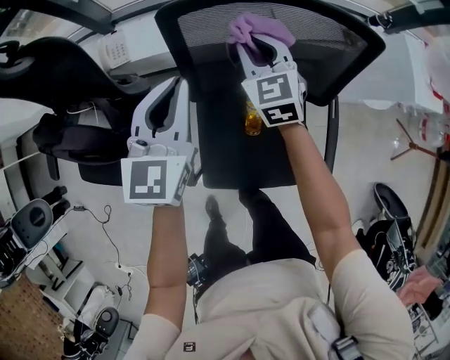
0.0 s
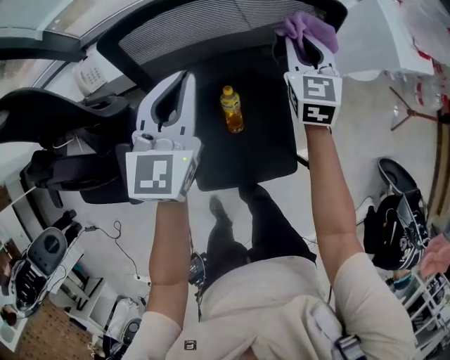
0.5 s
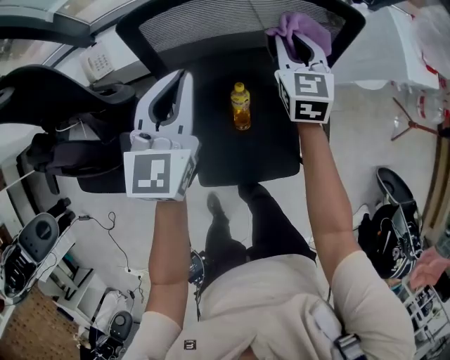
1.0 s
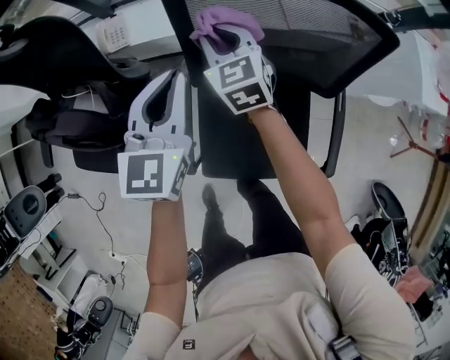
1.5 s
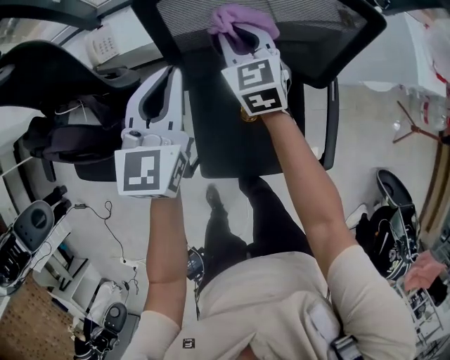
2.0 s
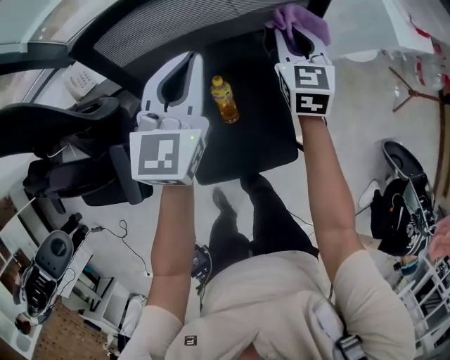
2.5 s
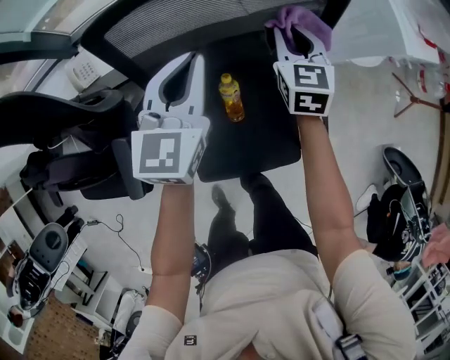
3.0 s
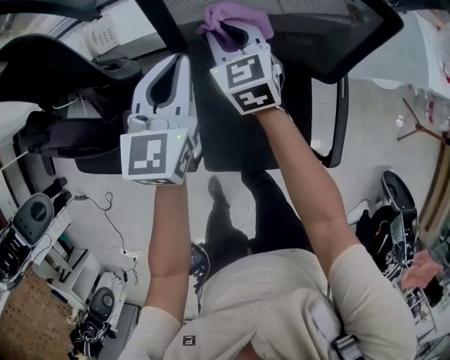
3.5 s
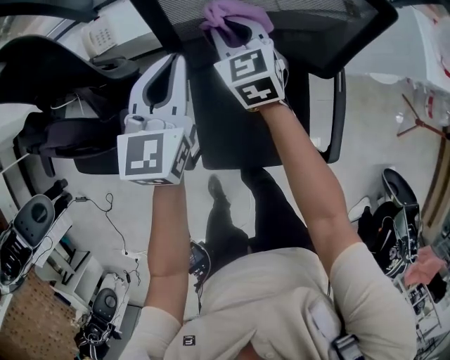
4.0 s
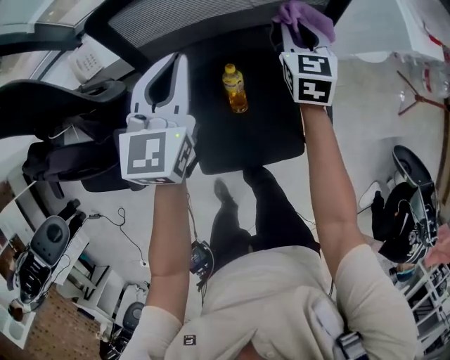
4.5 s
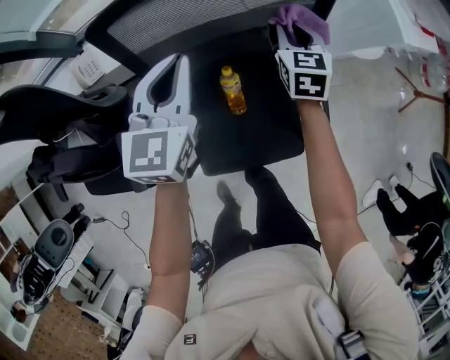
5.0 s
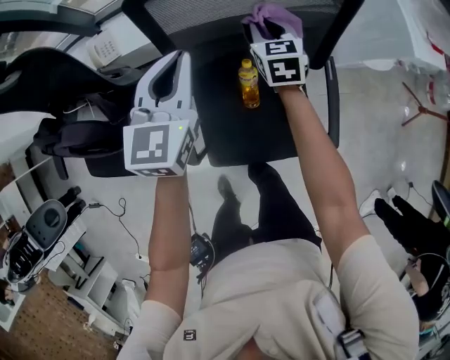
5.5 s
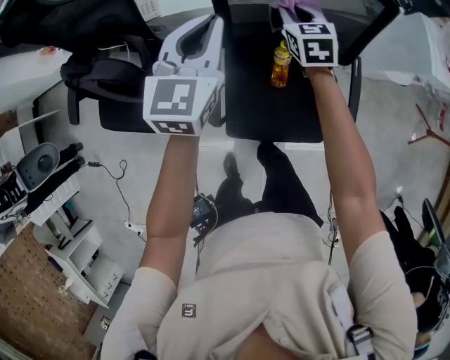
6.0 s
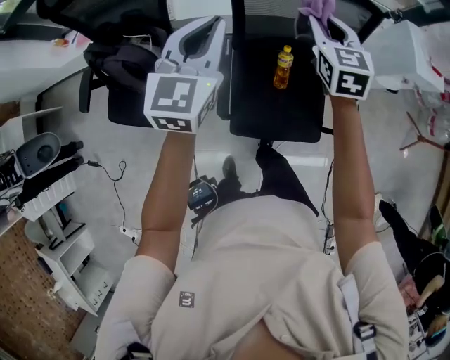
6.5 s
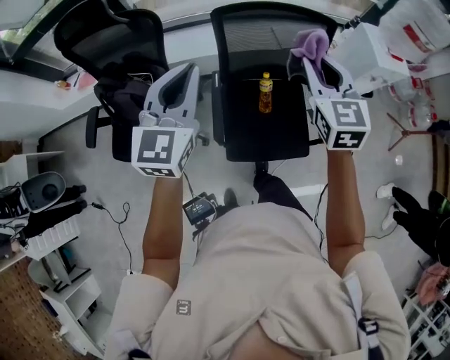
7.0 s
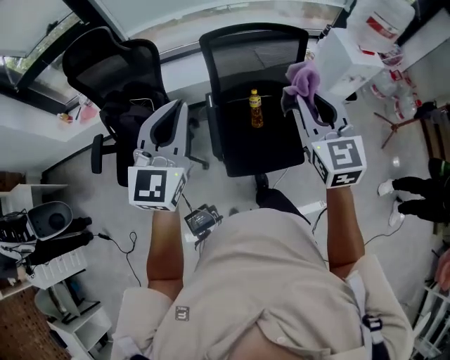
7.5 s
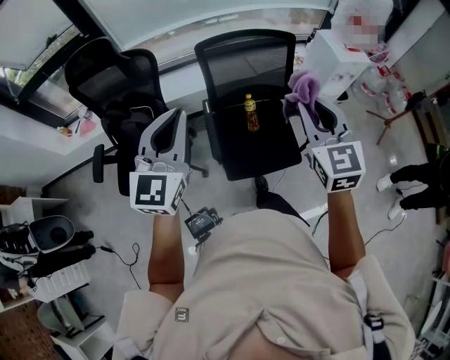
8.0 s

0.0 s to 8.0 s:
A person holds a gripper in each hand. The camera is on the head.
0.0 to 2.0 s: The left gripper moves approximately 10 cm to the right and comes back, while the right gripper moves left and right over some 30 cm, changing direction 2 times.
2.0 to 4.0 s: The right gripper reaches about 25 cm to the right, then returns. Meanwhile the left gripper reaches roughly 15 cm to the right, then returns.
4.0 to 6.0 s: The right gripper travels to the right and back again, some 25 cm each way. Meanwhile the left gripper heads upward and backward, covering roughly 10 cm, and reaches approximately 10 cm to the right, then returns.
6.0 to 8.0 s: Both grippers travel together backward and upward, about 50 cm. The left gripper changes its angle by about 20 degrees, while the right gripper turns by roughly 30 degrees.

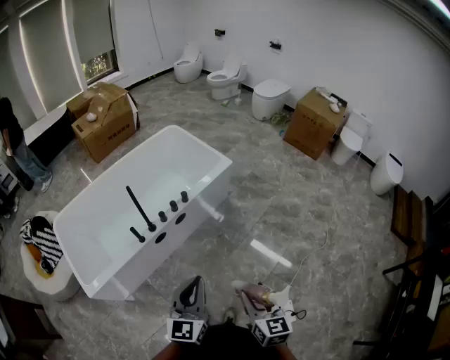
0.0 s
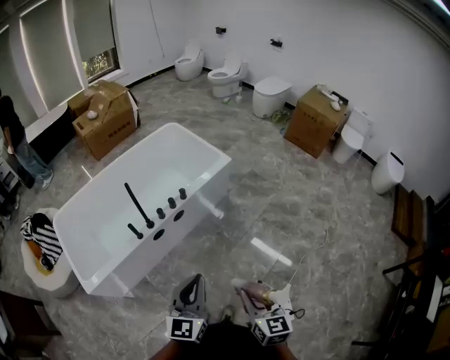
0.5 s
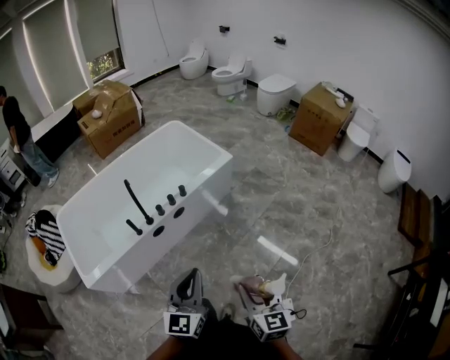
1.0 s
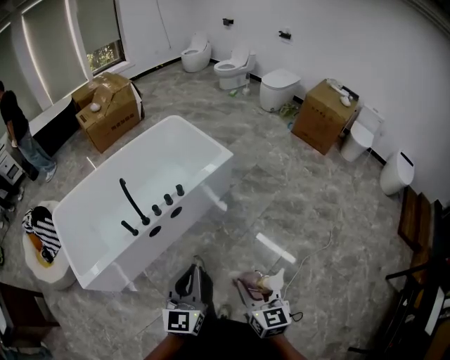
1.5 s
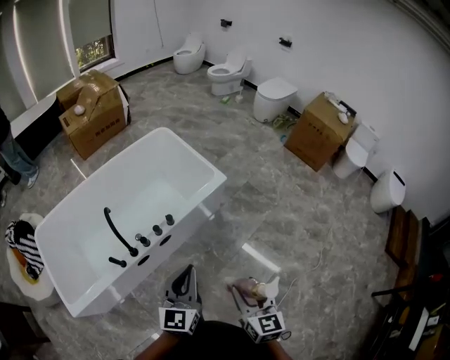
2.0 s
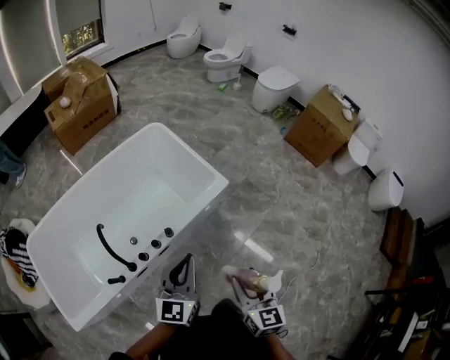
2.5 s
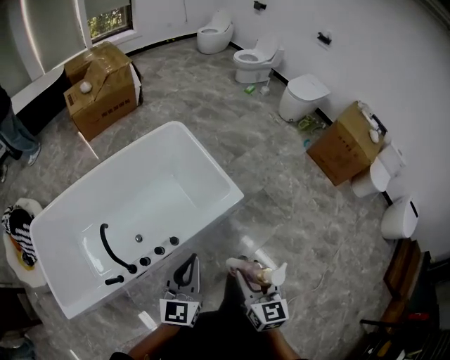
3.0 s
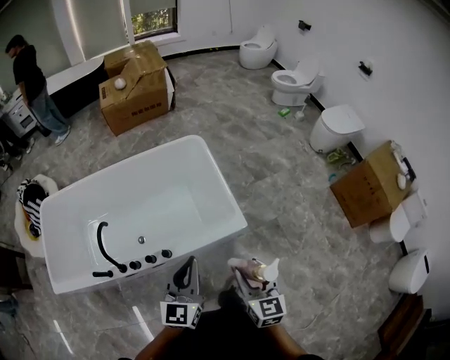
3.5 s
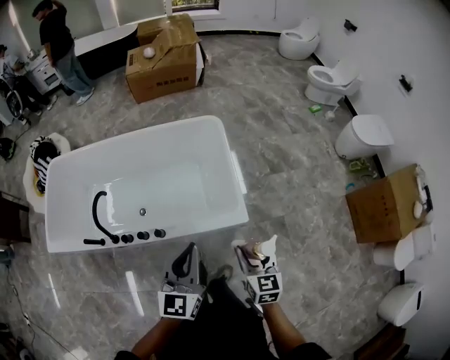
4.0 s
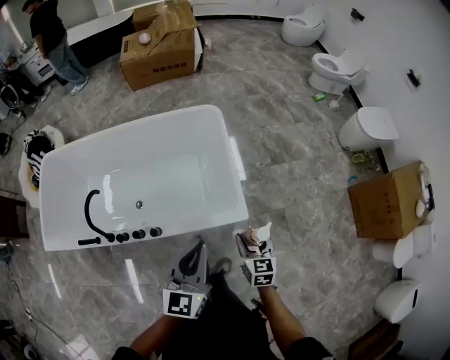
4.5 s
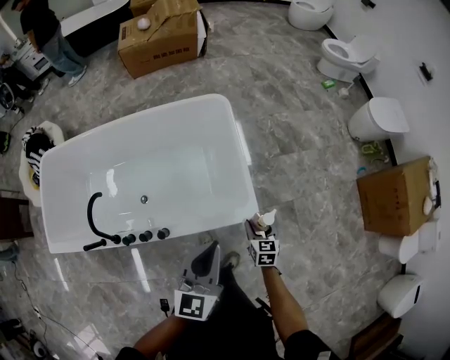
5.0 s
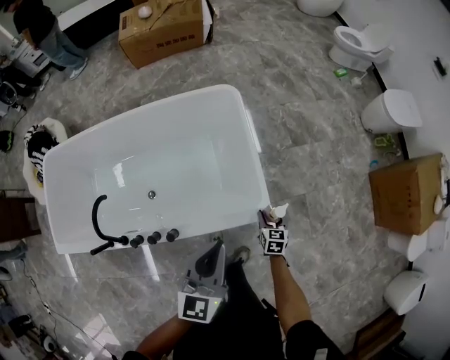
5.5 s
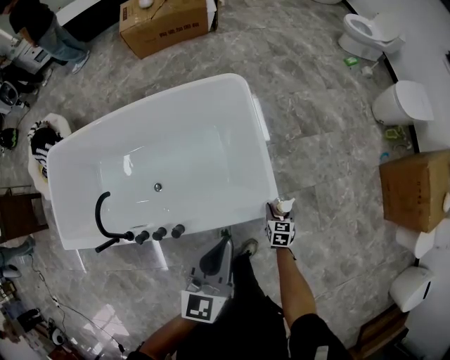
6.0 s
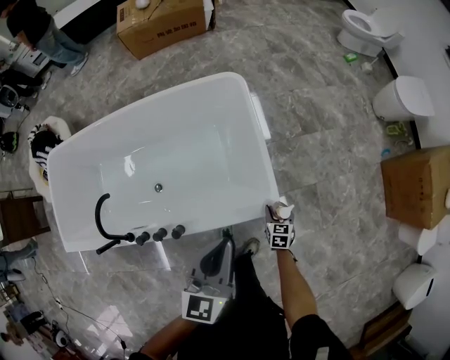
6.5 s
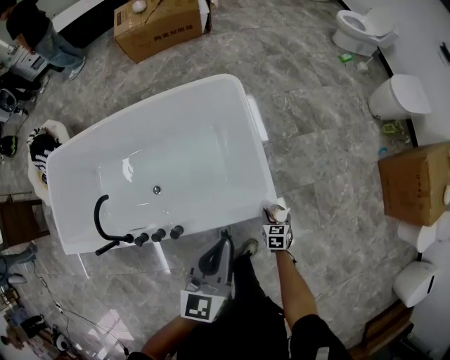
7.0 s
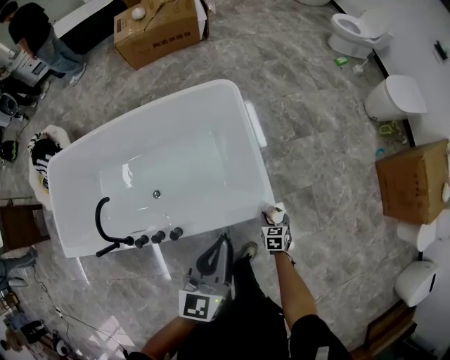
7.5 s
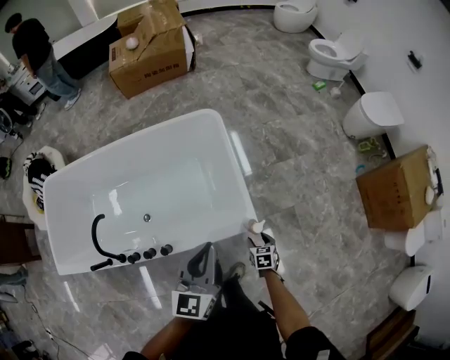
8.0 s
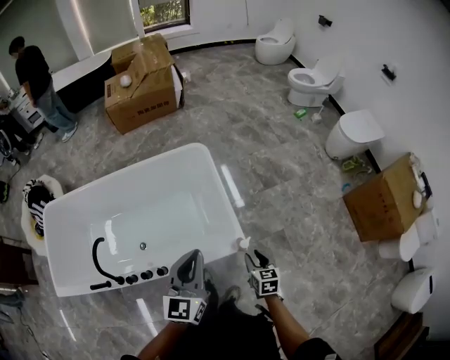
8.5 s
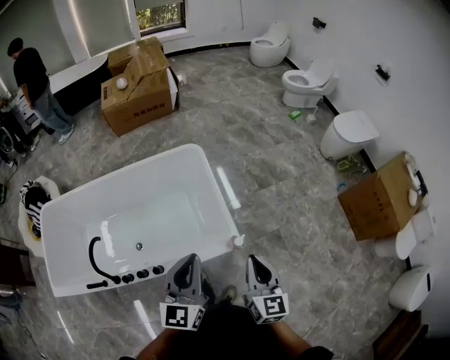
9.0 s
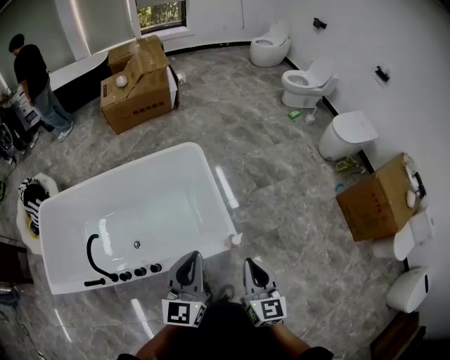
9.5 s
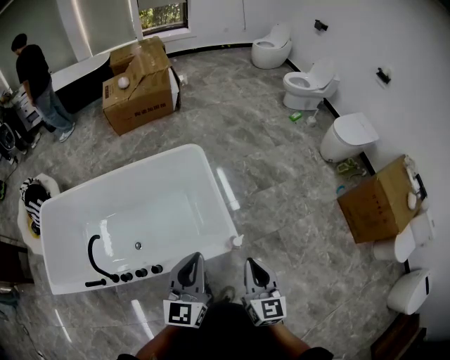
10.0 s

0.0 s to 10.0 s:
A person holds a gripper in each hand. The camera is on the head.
0.0 to 2.0 s: The grippers both shift forward by some 25 cm.
2.0 to 4.0 s: The two grippers travel together, about 50 cm. The right gripper turns by approximately 30 degrees. The left gripper rotates approximately 30 degrees.
4.0 to 6.0 s: The right gripper goes approximately 40 cm downward and forward, and changes its angle by about 20 degrees. The left gripper travels forward and downward by roughly 20 cm.
6.0 to 8.0 s: The left gripper moves some 5 cm, while the right gripper moves backward, roughly 10 cm.
8.0 to 10.0 s: The right gripper heads upward, covering approximately 40 cm, points its fingers approximately 50 degrees further upward, and closes its fingers; the left gripper moves upward, about 10 cm.

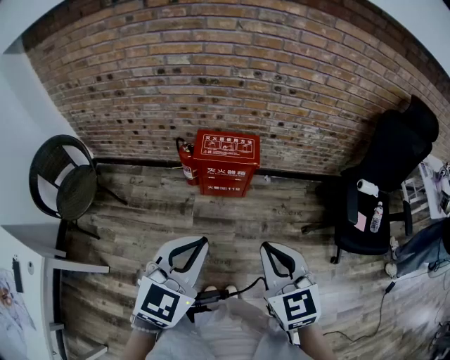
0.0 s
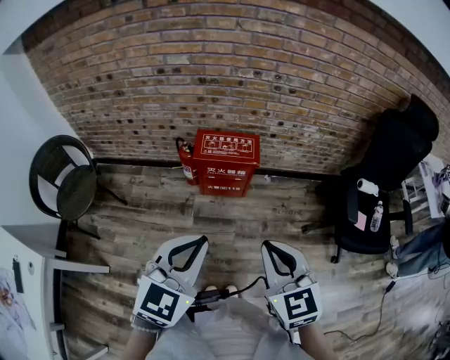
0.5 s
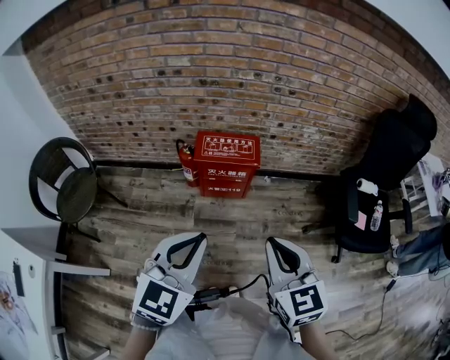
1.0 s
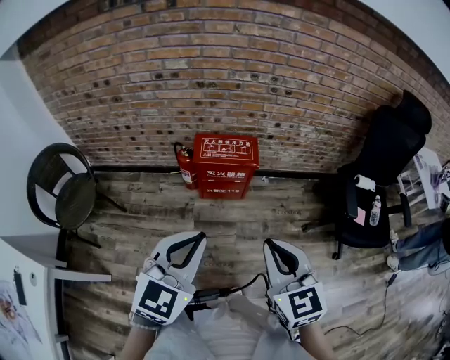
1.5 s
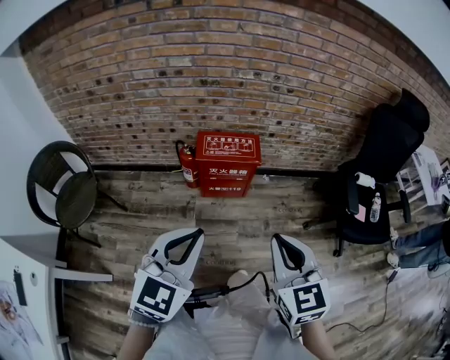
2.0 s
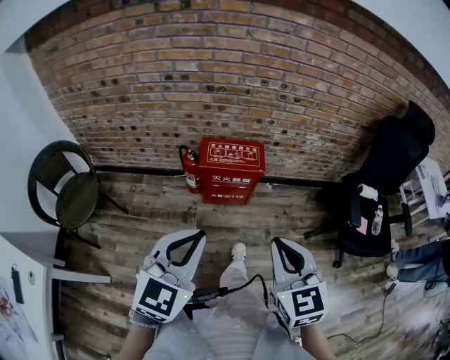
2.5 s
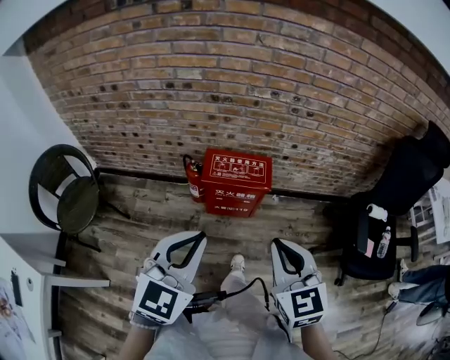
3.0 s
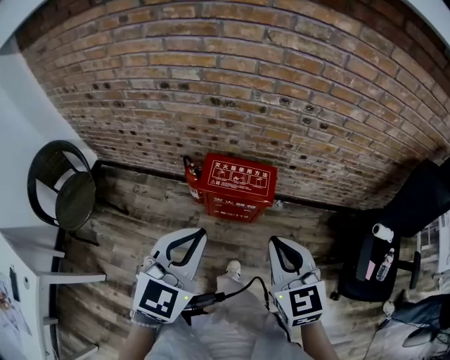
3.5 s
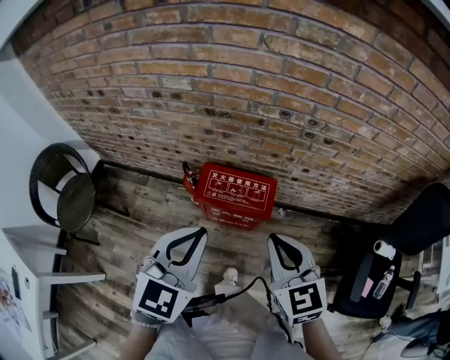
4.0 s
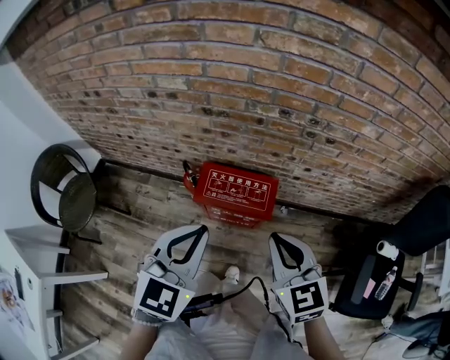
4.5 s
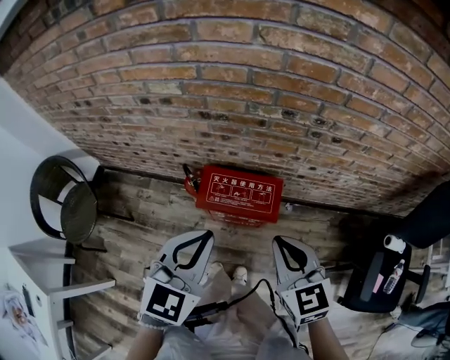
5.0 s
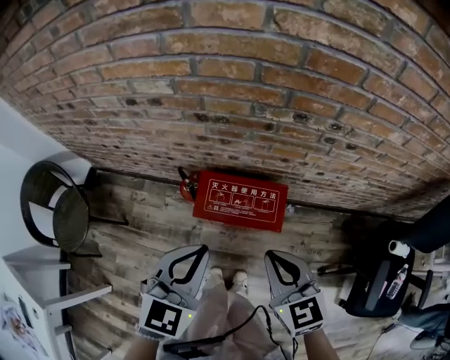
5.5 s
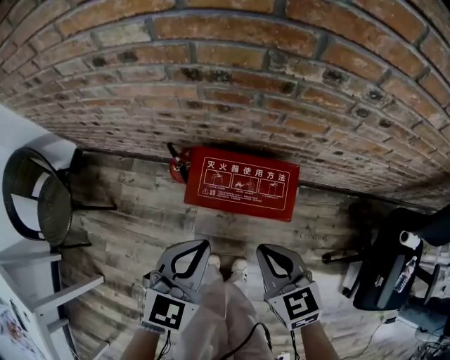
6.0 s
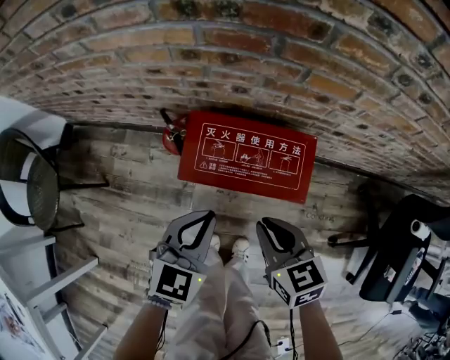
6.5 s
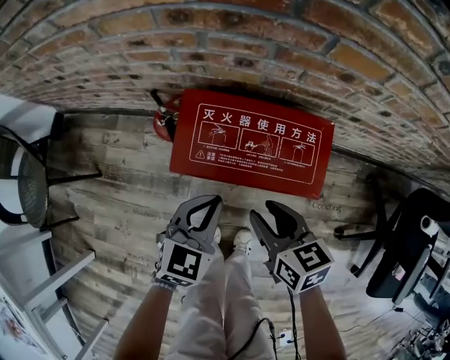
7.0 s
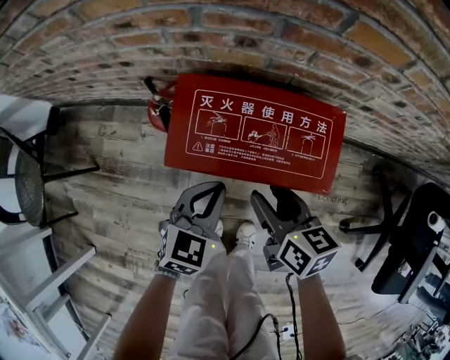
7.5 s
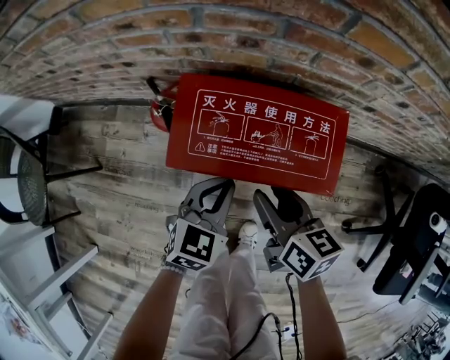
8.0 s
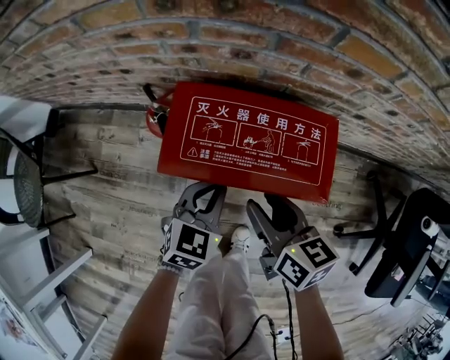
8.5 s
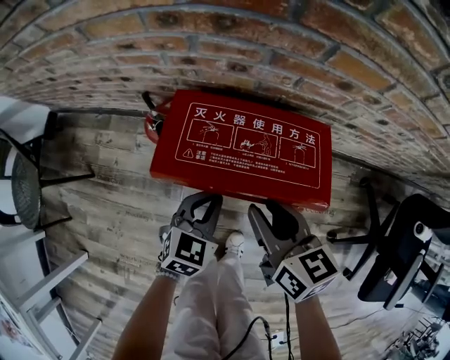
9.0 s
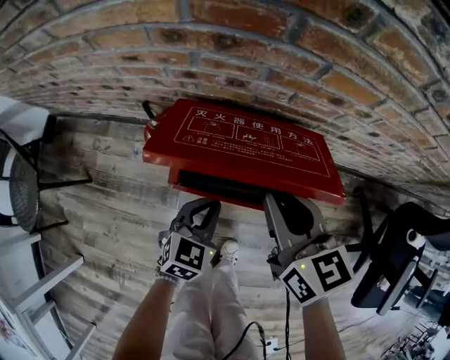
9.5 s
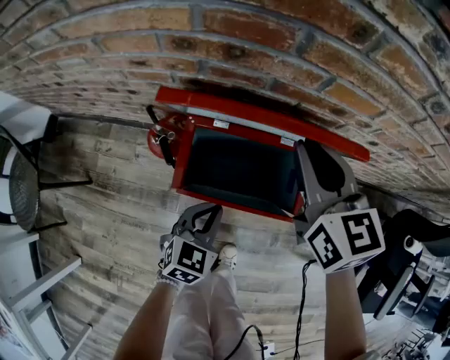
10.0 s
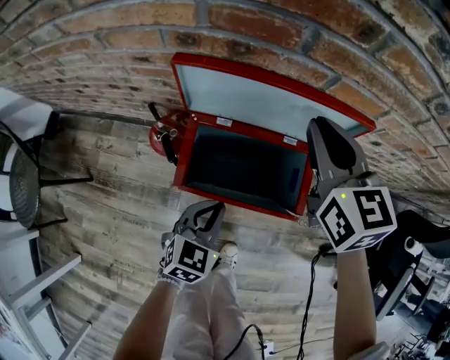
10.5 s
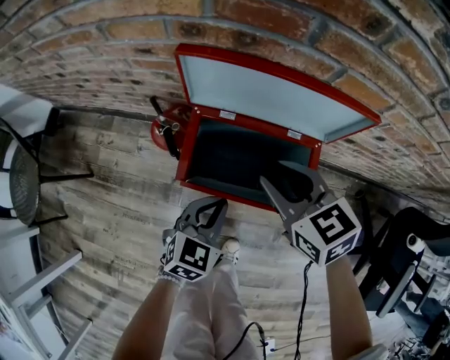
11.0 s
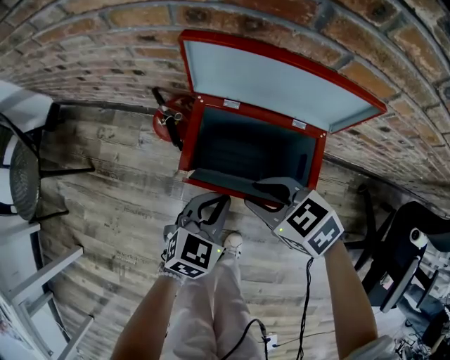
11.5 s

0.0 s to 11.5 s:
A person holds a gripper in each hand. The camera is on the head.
0.0 to 2.0 s: The left gripper travels to the left by approximately 5 cm.
2.0 to 4.0 s: Both grippers move forward, about 35 cm.
4.0 to 6.0 s: The left gripper moves downward and forward, about 25 cm, while the right gripper travels downward by about 20 cm.
6.0 to 7.5 s: The two grippers go about 25 cm downward. The right gripper changes its angle by about 30 degrees, and opens up.
7.5 to 9.5 s: The right gripper travels upward and forward by some 15 cm, and closes up.
9.5 to 11.5 s: The right gripper moves downward, approximately 10 cm, and rotates roughly 50 degrees.
